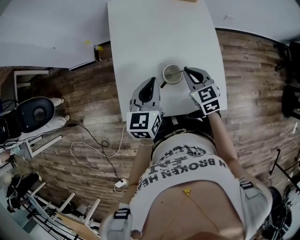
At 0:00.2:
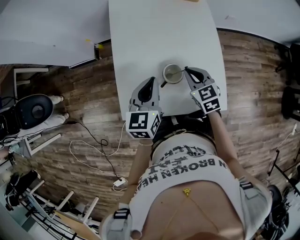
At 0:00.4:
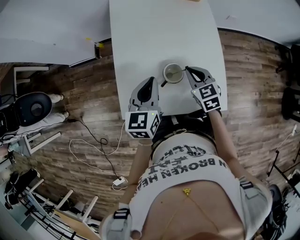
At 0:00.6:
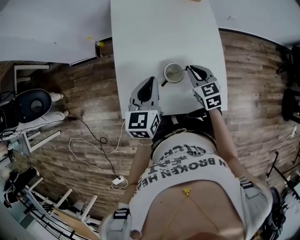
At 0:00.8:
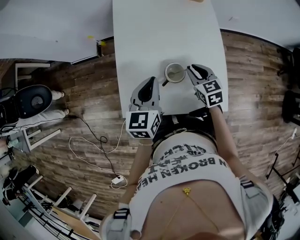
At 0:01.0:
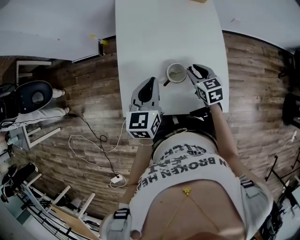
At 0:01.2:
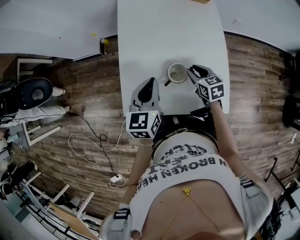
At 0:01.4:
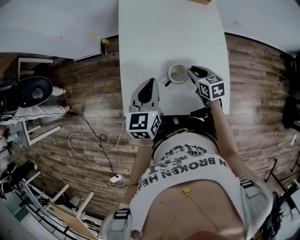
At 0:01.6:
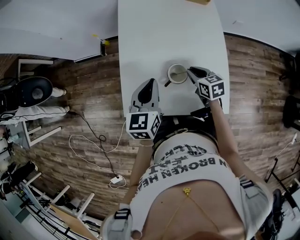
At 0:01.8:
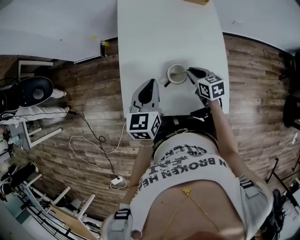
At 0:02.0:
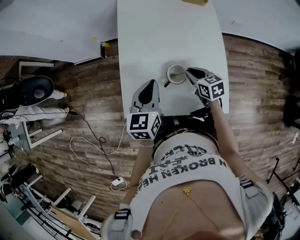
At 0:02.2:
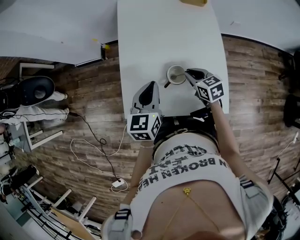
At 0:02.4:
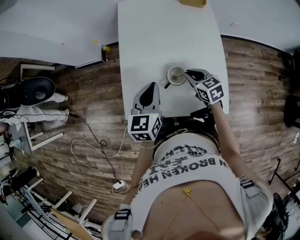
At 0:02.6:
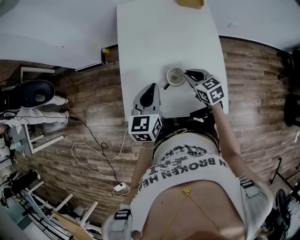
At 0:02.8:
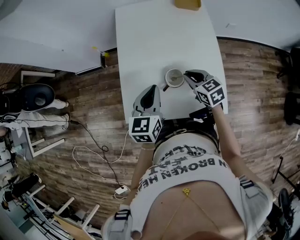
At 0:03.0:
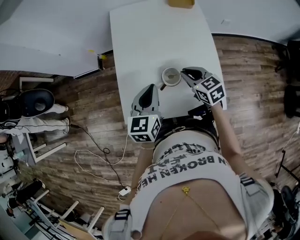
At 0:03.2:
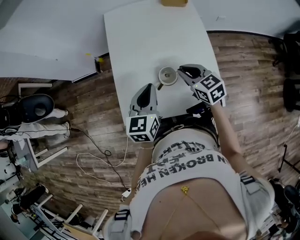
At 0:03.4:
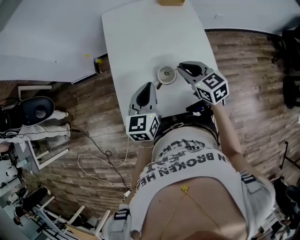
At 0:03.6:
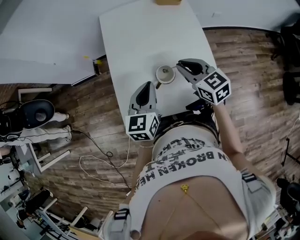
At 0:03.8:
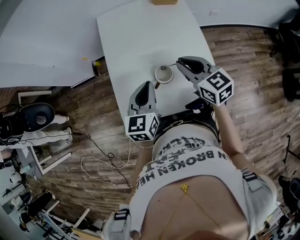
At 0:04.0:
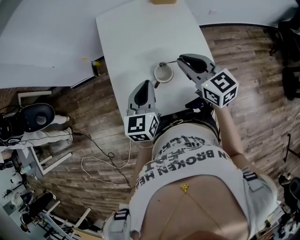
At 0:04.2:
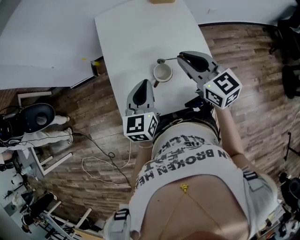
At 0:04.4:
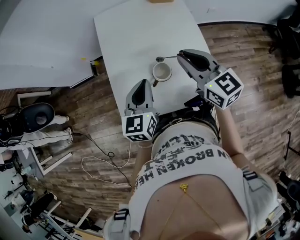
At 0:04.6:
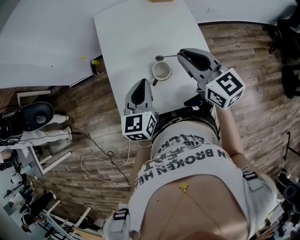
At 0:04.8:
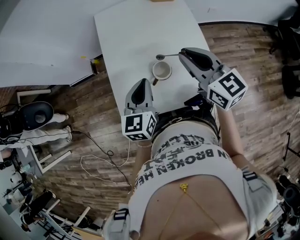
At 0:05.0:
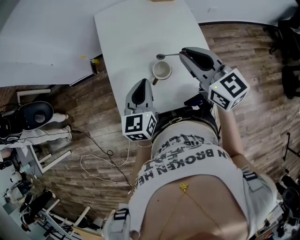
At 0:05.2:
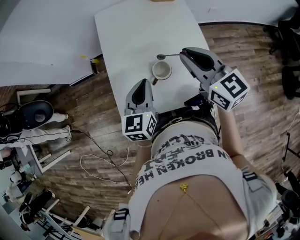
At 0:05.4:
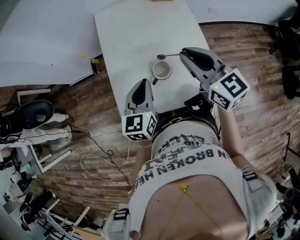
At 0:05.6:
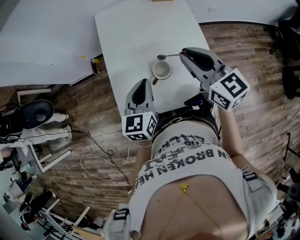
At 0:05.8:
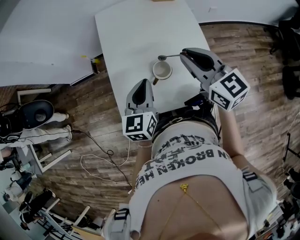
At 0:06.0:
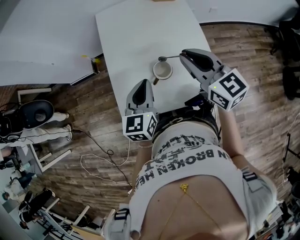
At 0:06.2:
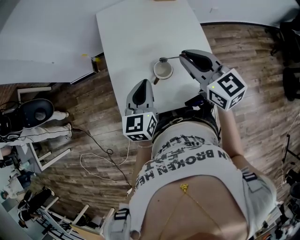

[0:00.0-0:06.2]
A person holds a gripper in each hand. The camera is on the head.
0:00.0 to 0:01.6: The right gripper travels downward by some 5 cm, and changes its angle by some 20 degrees.
0:01.6 to 0:03.2: The right gripper moves upward, roughly 10 cm.
0:03.2 to 0:04.6: The right gripper moves upward, approximately 15 cm, and rotates about 20 degrees.
0:04.6 to 0:06.2: The grippers stay close to where they were, moving slightly.

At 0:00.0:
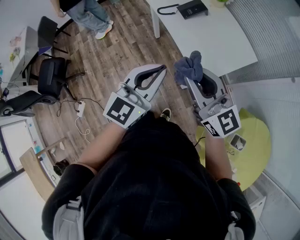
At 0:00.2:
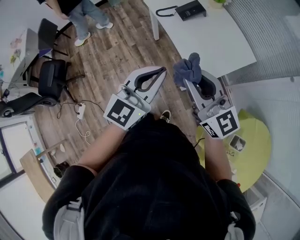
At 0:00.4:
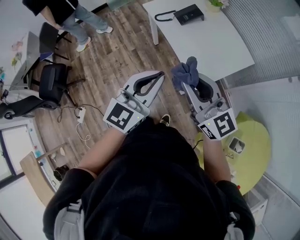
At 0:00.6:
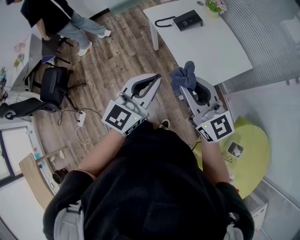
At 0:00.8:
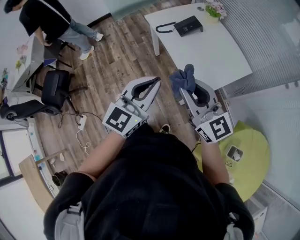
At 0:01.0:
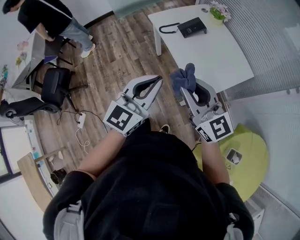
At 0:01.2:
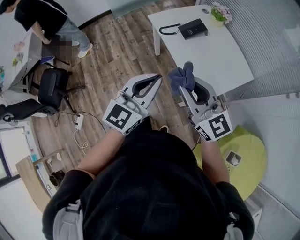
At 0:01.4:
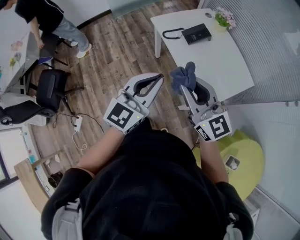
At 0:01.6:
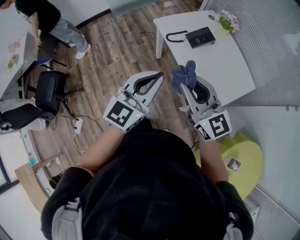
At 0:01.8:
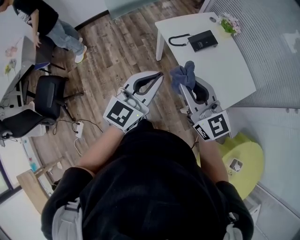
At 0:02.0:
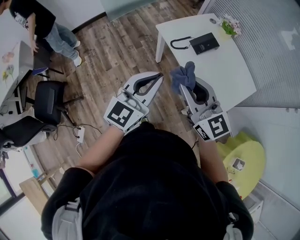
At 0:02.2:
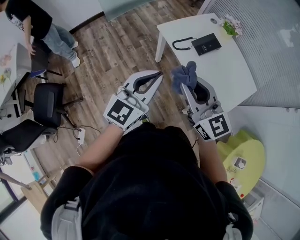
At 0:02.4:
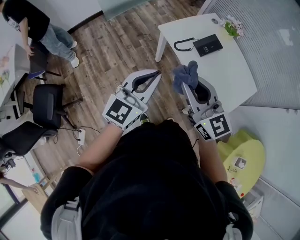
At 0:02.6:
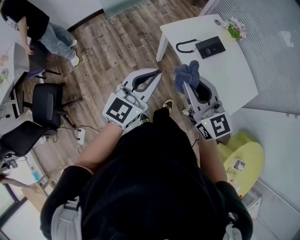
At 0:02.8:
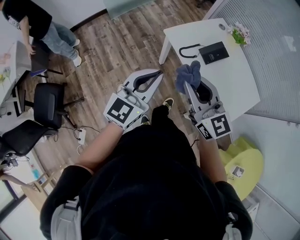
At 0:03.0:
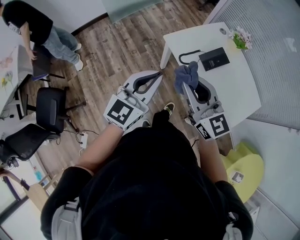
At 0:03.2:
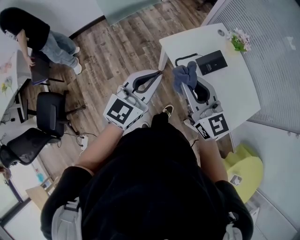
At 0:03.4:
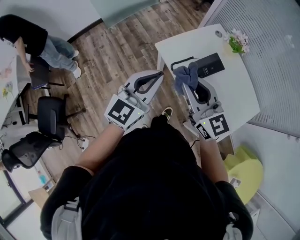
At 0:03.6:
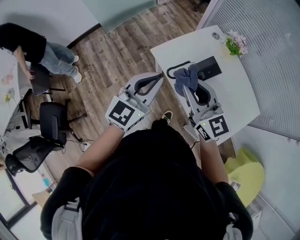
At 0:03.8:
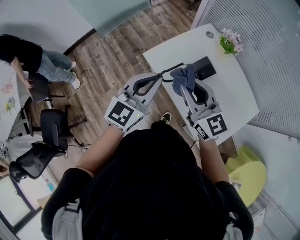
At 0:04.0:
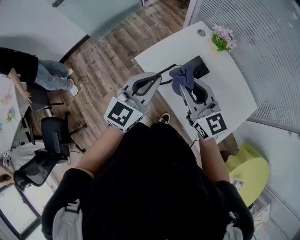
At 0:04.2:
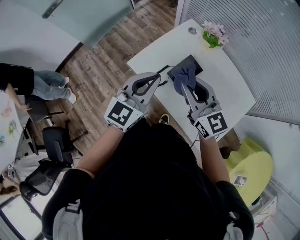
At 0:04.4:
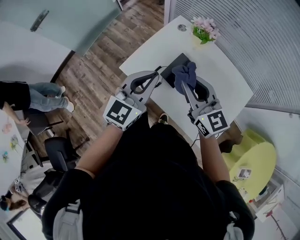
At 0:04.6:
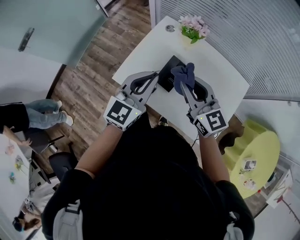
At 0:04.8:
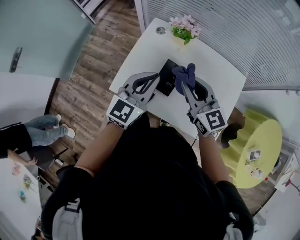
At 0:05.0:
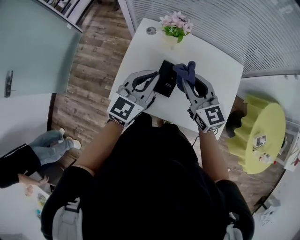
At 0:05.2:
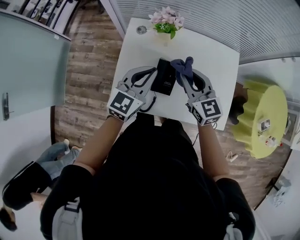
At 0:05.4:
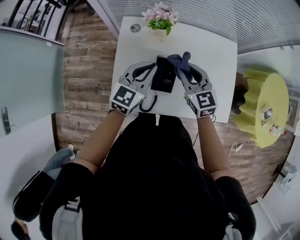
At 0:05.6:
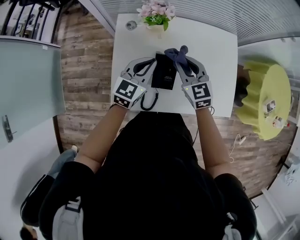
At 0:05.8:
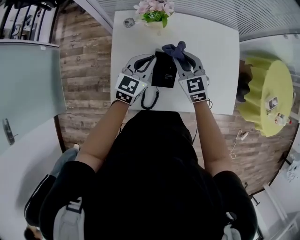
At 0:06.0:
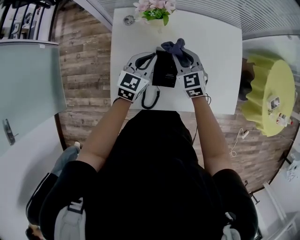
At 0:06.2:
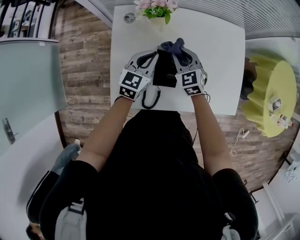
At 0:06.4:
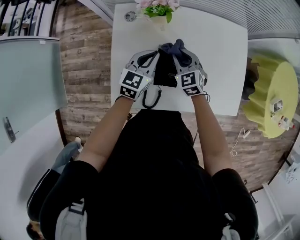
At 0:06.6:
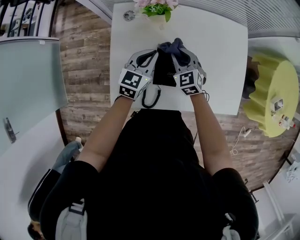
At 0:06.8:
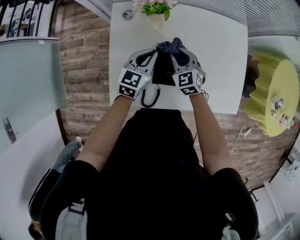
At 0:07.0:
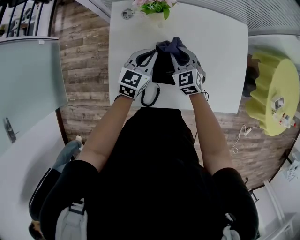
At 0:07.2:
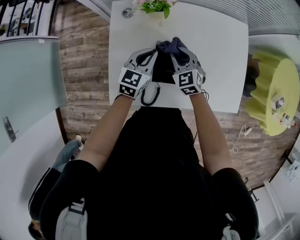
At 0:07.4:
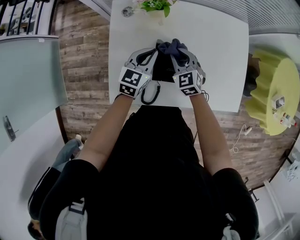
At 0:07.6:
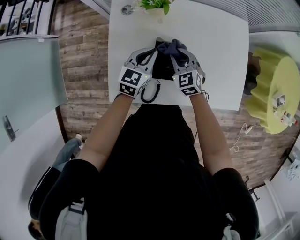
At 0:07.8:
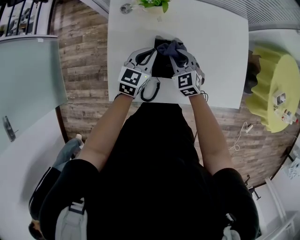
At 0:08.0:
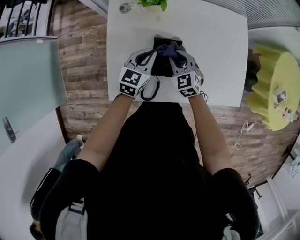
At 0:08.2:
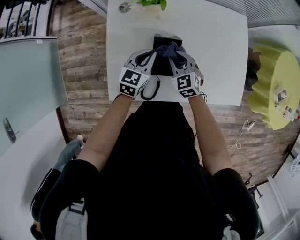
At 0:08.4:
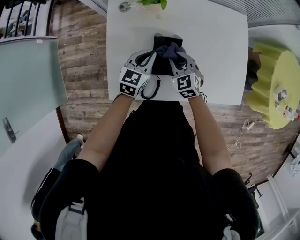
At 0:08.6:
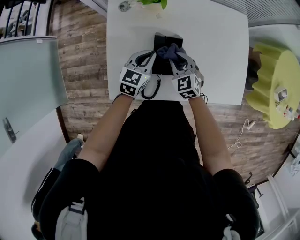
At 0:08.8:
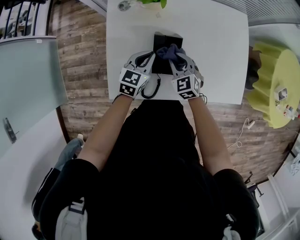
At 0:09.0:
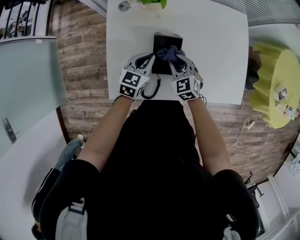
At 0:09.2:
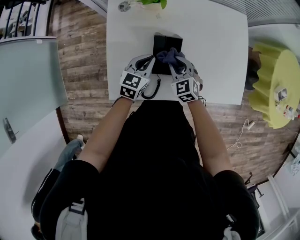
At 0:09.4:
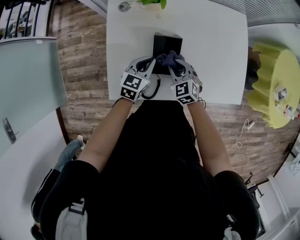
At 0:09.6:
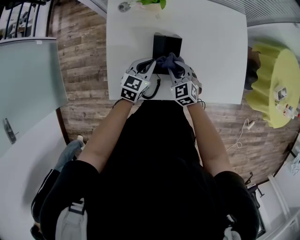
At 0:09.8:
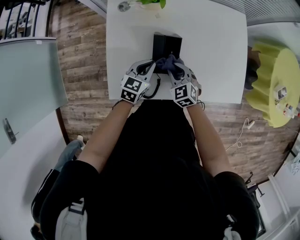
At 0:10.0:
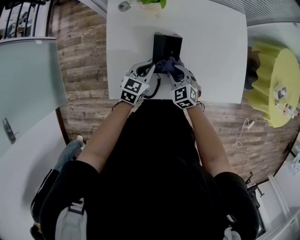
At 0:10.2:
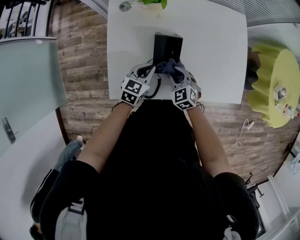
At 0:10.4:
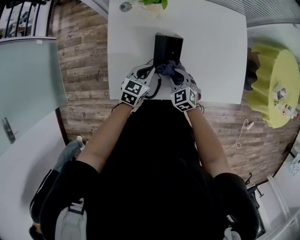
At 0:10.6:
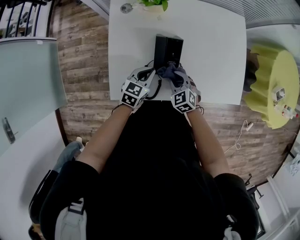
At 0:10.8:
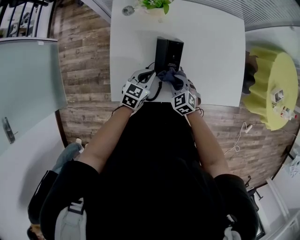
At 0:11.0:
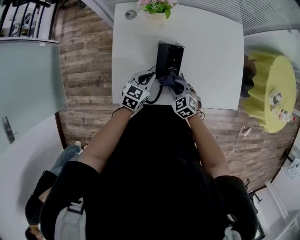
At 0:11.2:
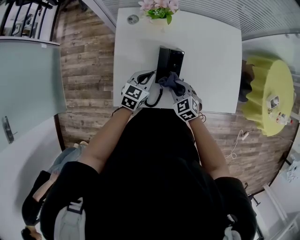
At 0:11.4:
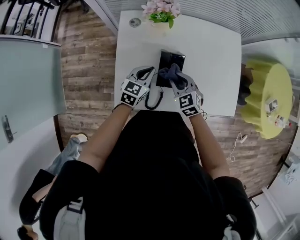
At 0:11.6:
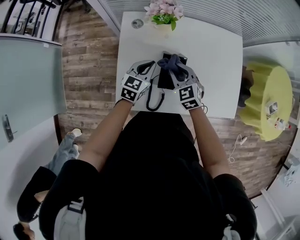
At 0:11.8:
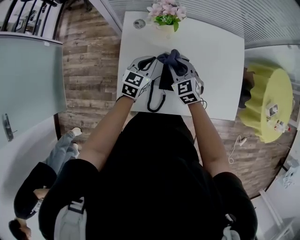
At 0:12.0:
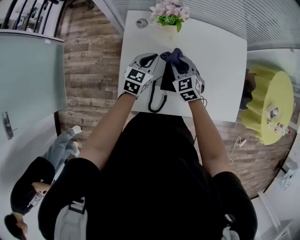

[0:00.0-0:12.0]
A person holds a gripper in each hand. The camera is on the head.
0:00.0 to 0:01.6: Both grippers move forward and to the left, some 15 cm.
0:01.6 to 0:03.0: The two grippers go about 20 cm forward and to the left.
0:03.0 to 0:04.4: The left gripper is displaced forward and to the right by roughly 30 cm. The right gripper is displaced to the right and forward by approximately 30 cm, and rotates some 20 degrees.
0:04.4 to 0:06.0: The left gripper changes place by approximately 30 cm, and changes its angle by some 40 degrees; the right gripper moves downward, about 20 cm, and turns by roughly 50 degrees.
0:06.0 to 0:07.6: The right gripper shifts some 5 cm downward.
0:07.6 to 0:09.0: The right gripper goes about 5 cm backward. The left gripper changes place by roughly 5 cm.
0:09.0 to 0:10.4: The two grippers go about 5 cm backward.
0:10.4 to 0:12.0: The right gripper moves forward and upward, approximately 15 cm. Meanwhile the left gripper moves forward, upward and to the left, about 15 cm.

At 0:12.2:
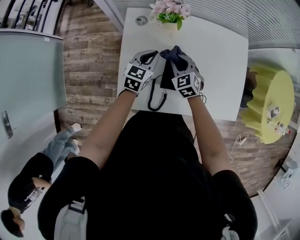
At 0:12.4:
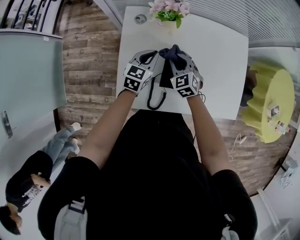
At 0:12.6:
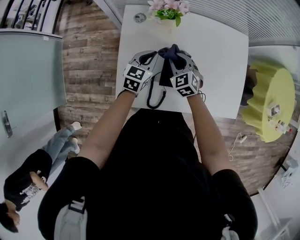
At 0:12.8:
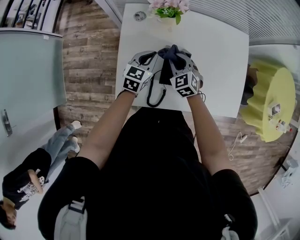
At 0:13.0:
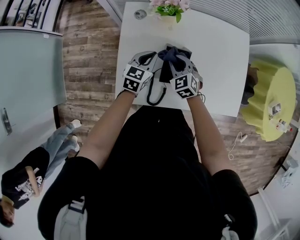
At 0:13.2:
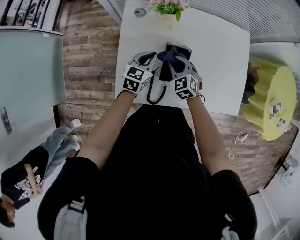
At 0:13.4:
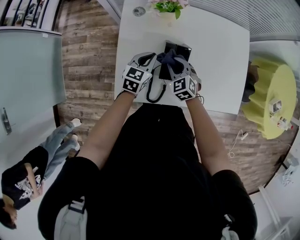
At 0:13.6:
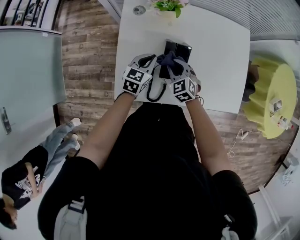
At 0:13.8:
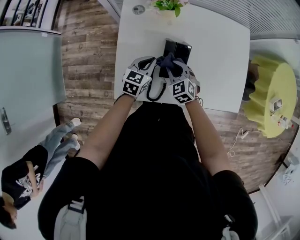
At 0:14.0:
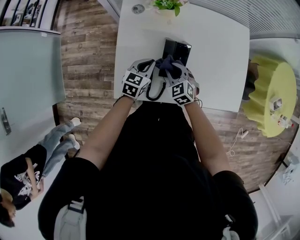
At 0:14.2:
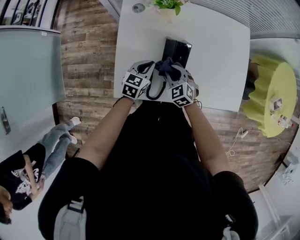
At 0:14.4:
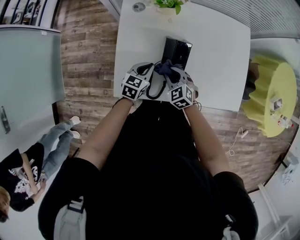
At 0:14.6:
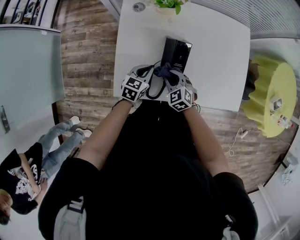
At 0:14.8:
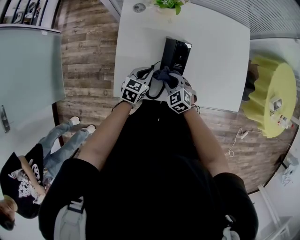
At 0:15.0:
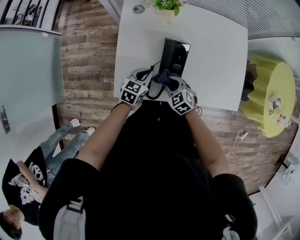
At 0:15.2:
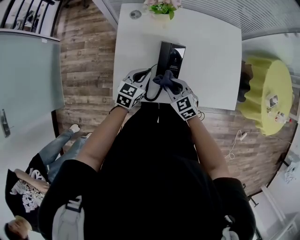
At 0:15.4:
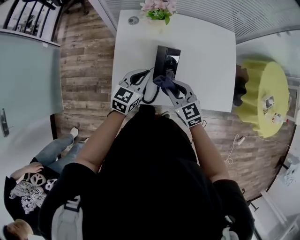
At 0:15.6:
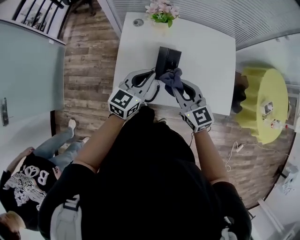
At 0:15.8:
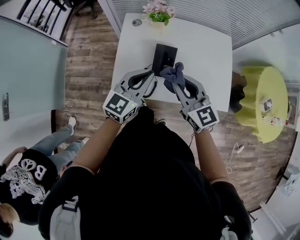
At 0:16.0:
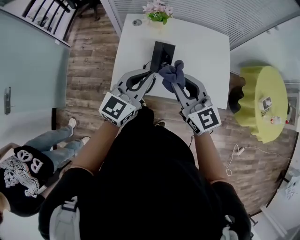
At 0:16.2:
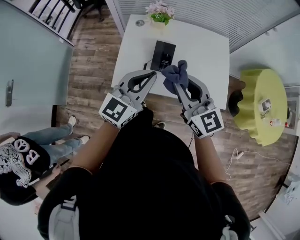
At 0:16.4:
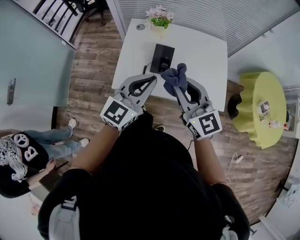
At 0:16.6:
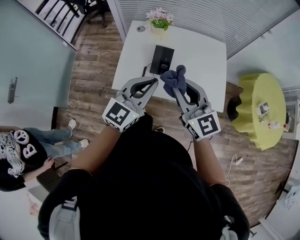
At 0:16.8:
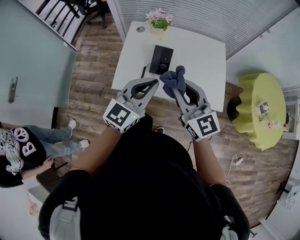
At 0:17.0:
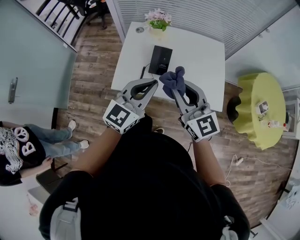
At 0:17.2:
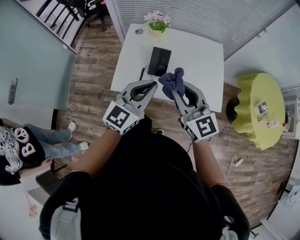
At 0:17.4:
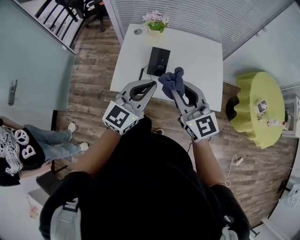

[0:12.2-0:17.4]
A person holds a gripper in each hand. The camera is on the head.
0:12.2 to 0:14.0: The right gripper heads backward, covering roughly 10 cm; the left gripper is displaced backward and downward by about 10 cm.
0:14.0 to 0:15.6: The grippers both shift upward by about 20 cm. The left gripper changes its angle by about 20 degrees; the right gripper swivels approximately 30 degrees.
0:15.6 to 0:17.4: The left gripper shifts some 25 cm backward, upward and to the right. Meanwhile the right gripper is displaced upward and backward by approximately 20 cm.
